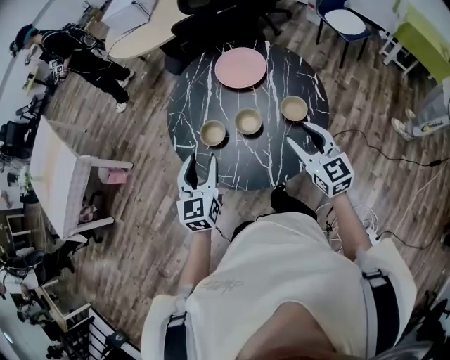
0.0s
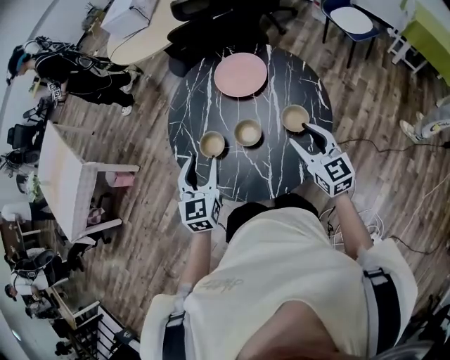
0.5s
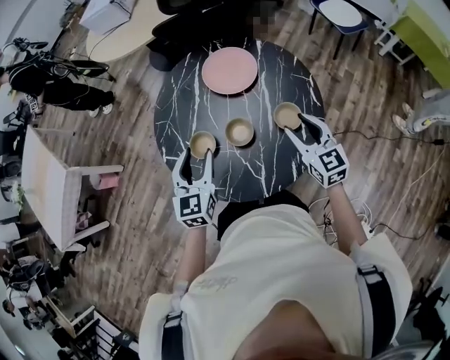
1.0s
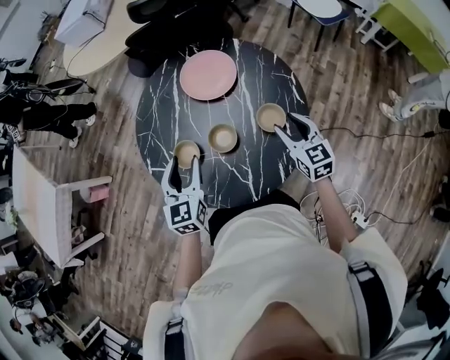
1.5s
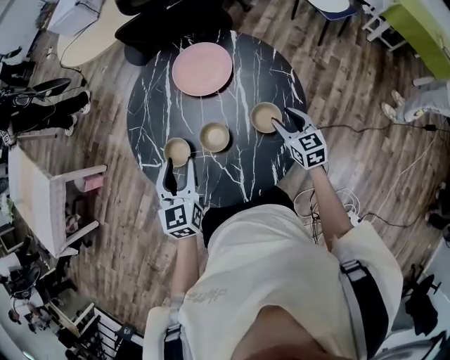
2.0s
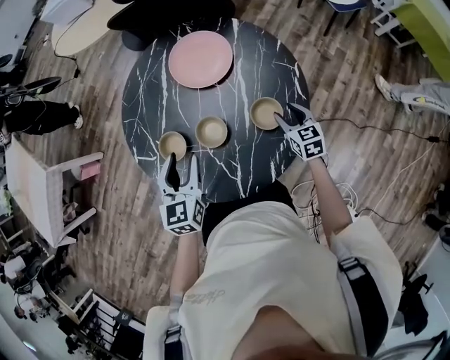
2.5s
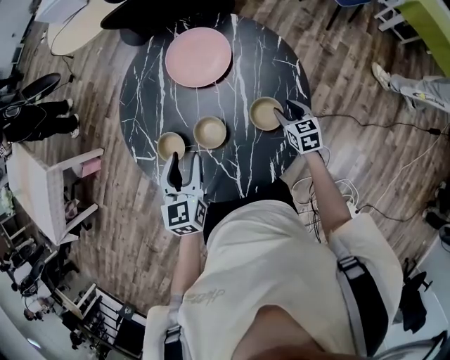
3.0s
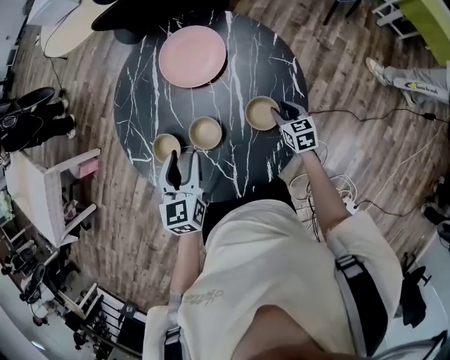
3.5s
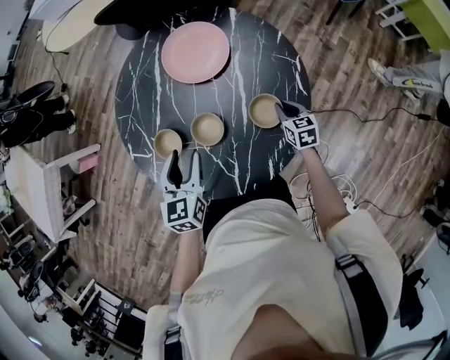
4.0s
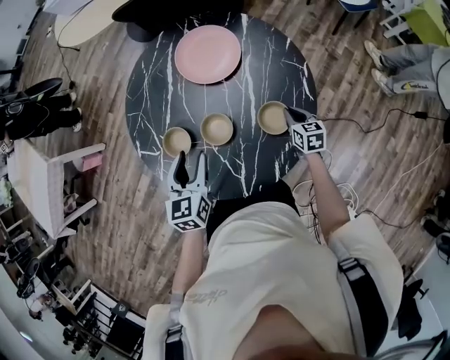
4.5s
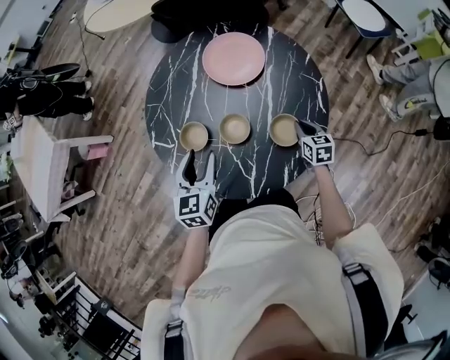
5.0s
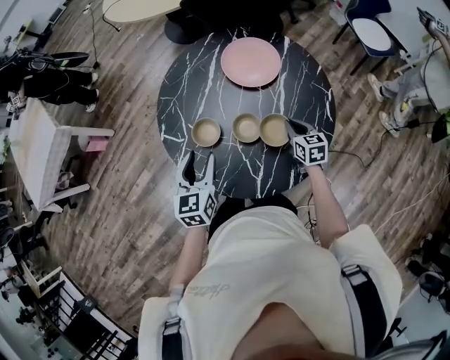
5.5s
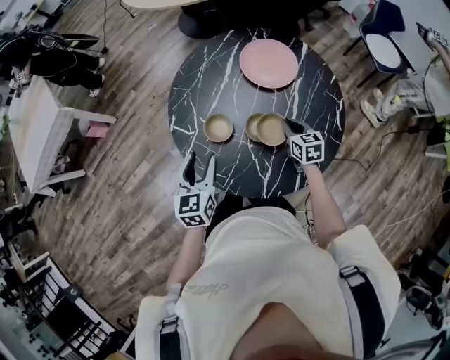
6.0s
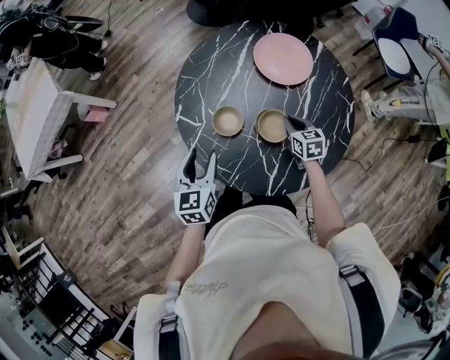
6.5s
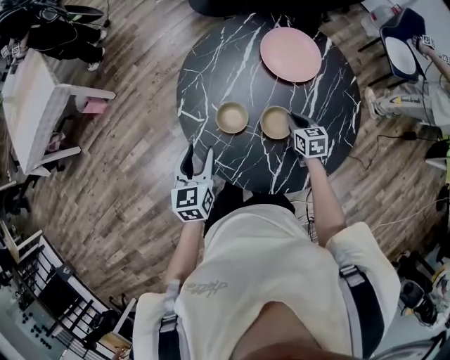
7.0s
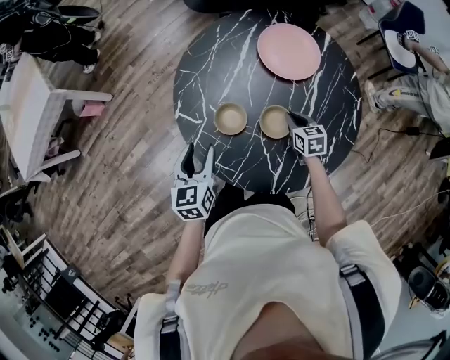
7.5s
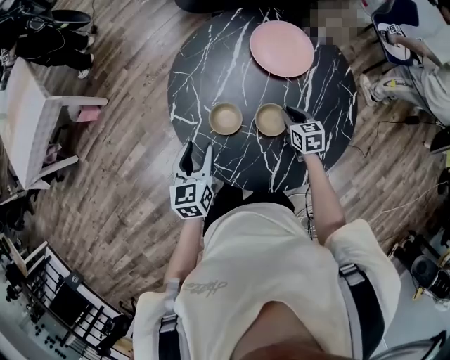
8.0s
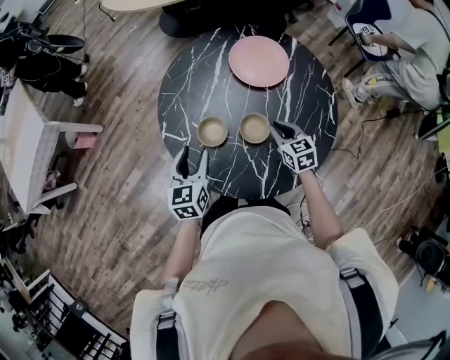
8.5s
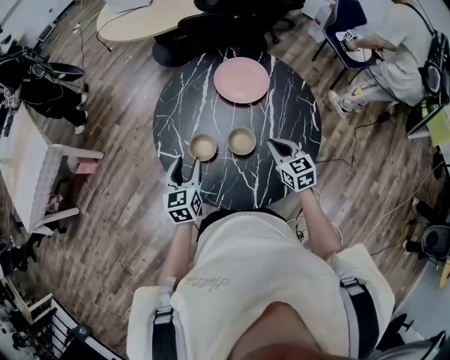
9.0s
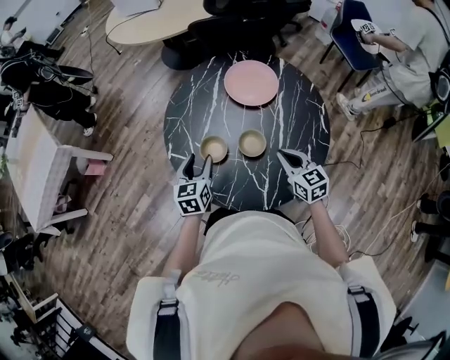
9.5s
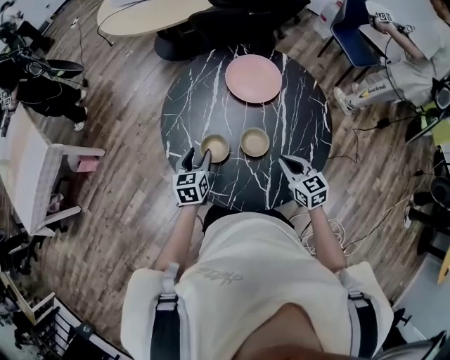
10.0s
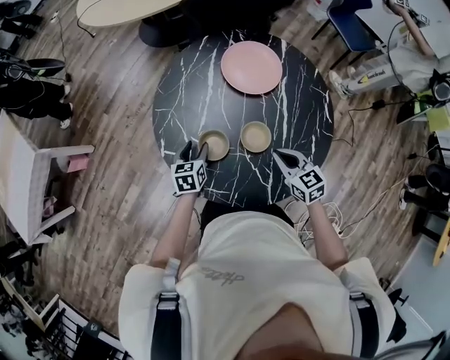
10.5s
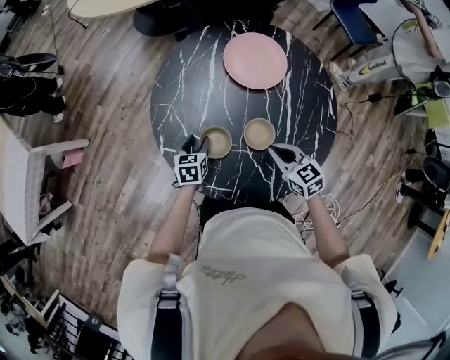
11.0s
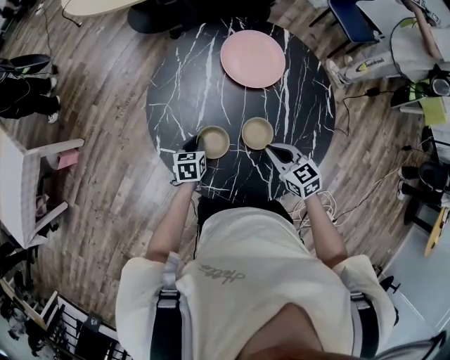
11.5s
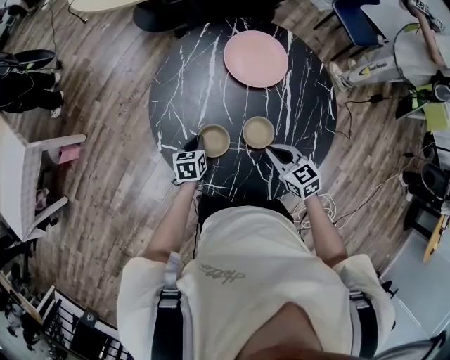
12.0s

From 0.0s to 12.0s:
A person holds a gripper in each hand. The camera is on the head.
From 0.0s to 2.0s: The left gripper travels forward and to the right by some 10 cm, while the right gripper shifts approximately 25 cm downward, forward and to the right.
From 2.0s to 4.0s: The right gripper moves downward, approximately 15 cm, and closes up, while the left gripper moves approximately 5 cm.
From 4.0s to 6.0s: The right gripper is displaced to the left and upward by about 20 cm. The left gripper shifts about 15 cm to the left.
From 6.0s to 8.0s: The left gripper changes place by about 5 cm. Meanwhile the right gripper moves downward, about 5 cm.
From 8.0s to 10.0s: The left gripper shifts approximately 5 cm forward; the right gripper heads upward and backward, covering some 15 cm.
From 10.0s to 12.0s: The left gripper moves downward, about 15 cm, and closes its fingers; the right gripper travels to the left by approximately 5 cm.

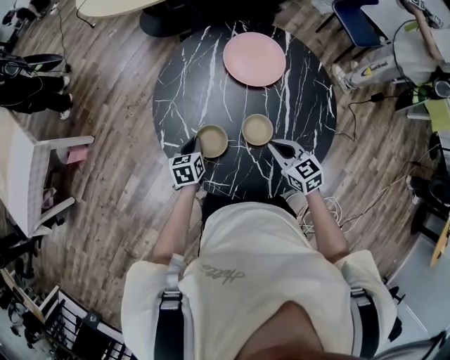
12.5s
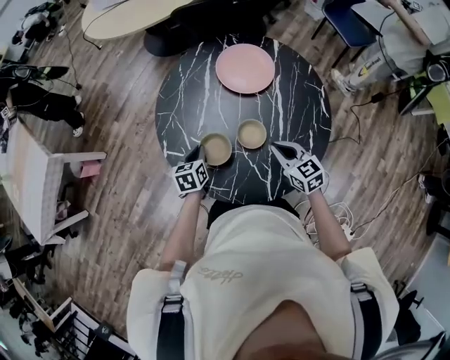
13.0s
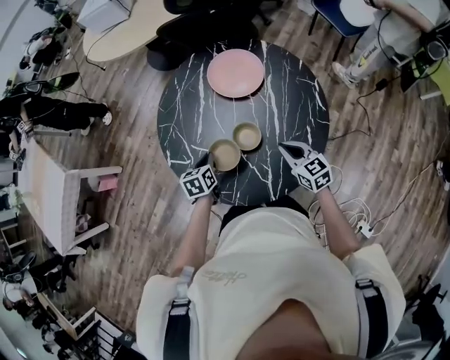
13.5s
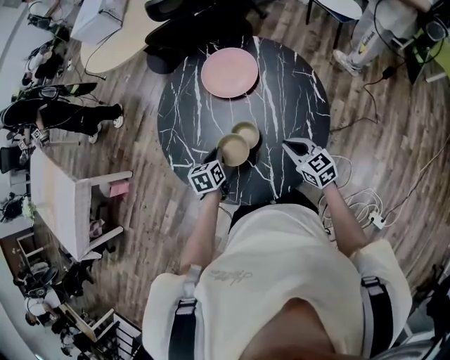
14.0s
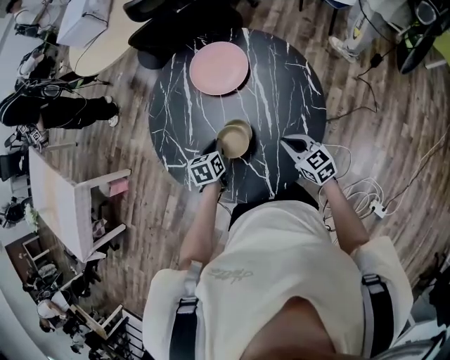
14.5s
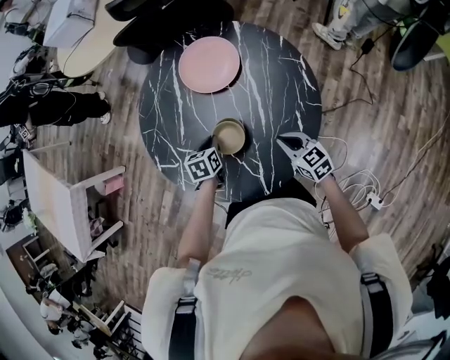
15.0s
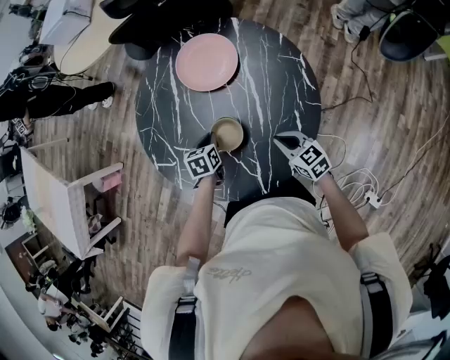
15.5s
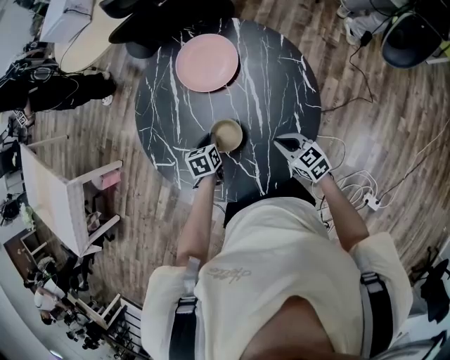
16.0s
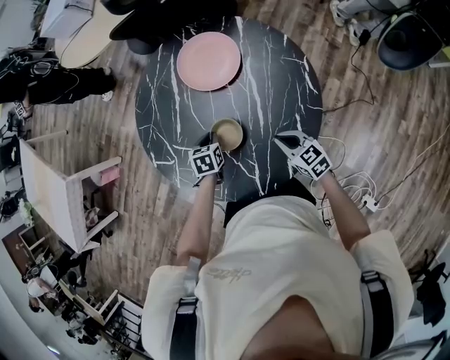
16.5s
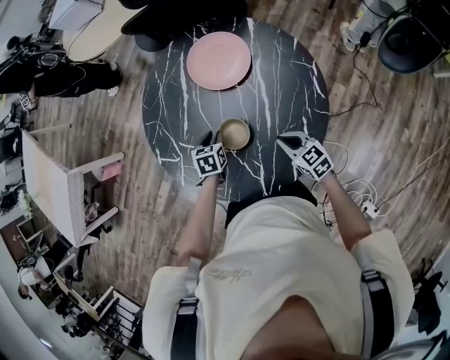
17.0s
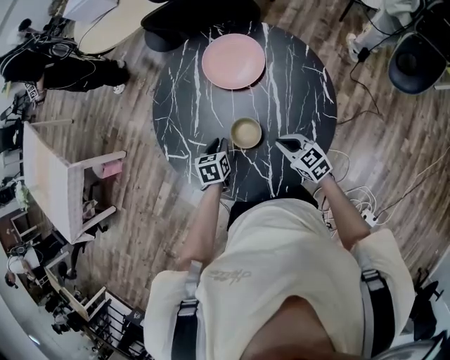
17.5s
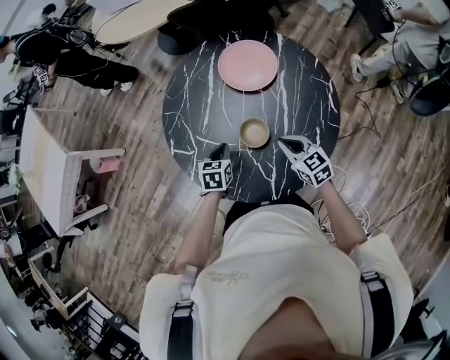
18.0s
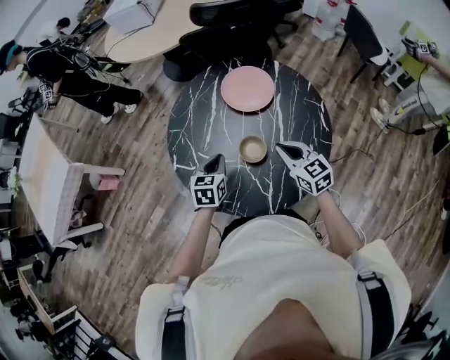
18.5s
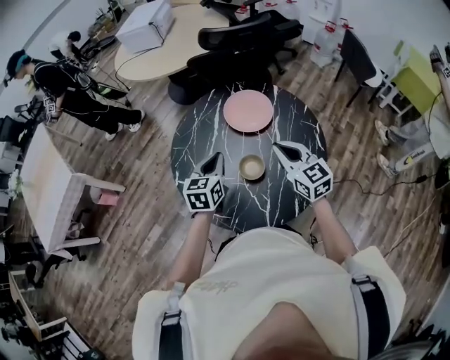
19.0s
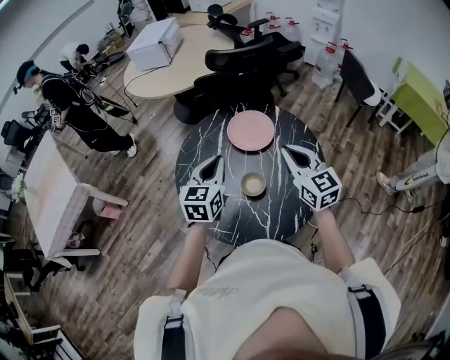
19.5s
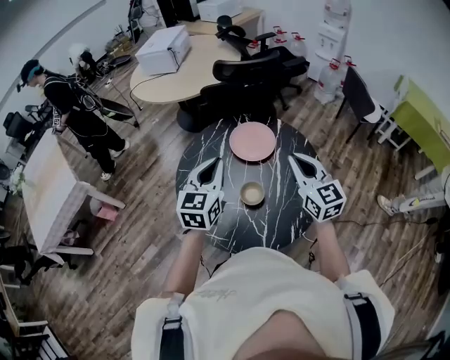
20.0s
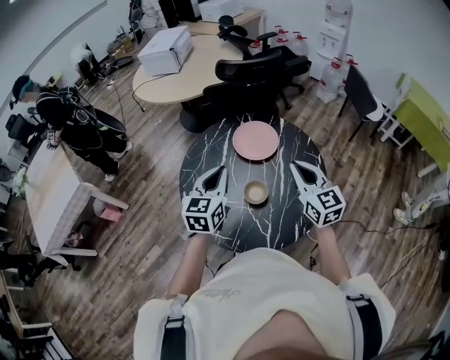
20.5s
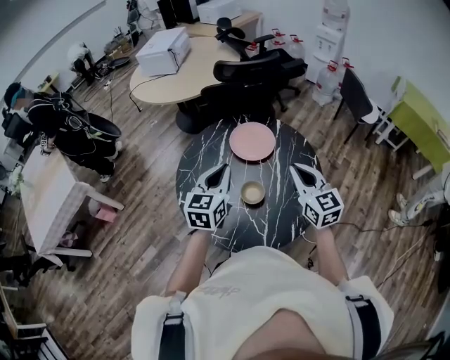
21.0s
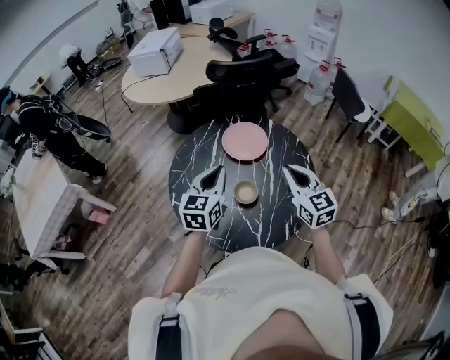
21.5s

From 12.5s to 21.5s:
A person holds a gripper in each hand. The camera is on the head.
From 12.5s to 14.5s: Both grippers move to the right, roughly 15 cm.
From 14.5s to 17.0s: The left gripper opens.
From 17.0s to 19.5s: The two grippers go some 30 cm upward. The right gripper changes its angle by roughly 30 degrees. The left gripper points its fingers some 40 degrees further upward, and closes.
From 19.5s to 21.5s: The grippers make only small movements.

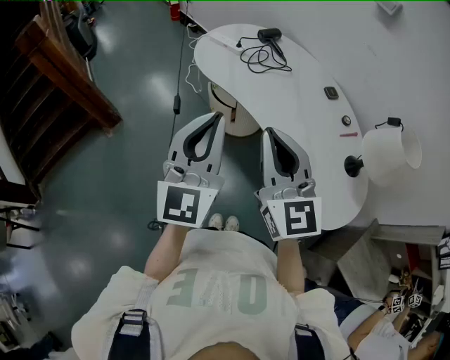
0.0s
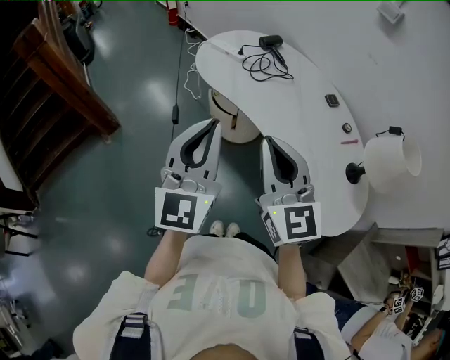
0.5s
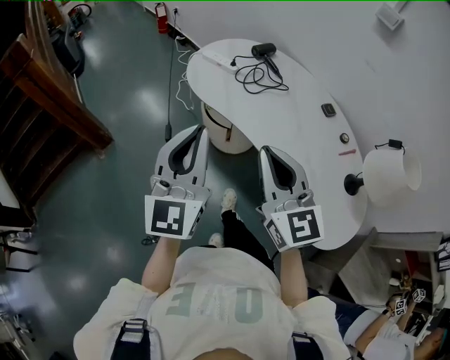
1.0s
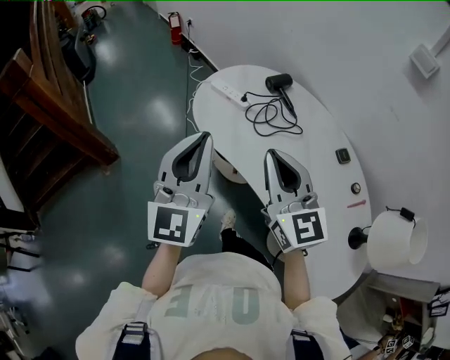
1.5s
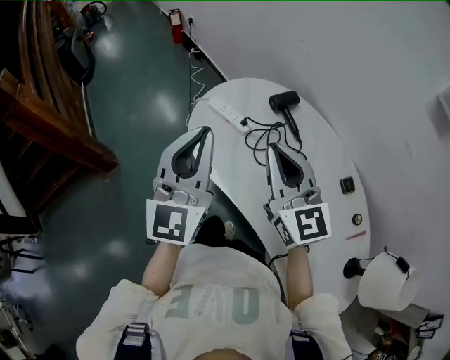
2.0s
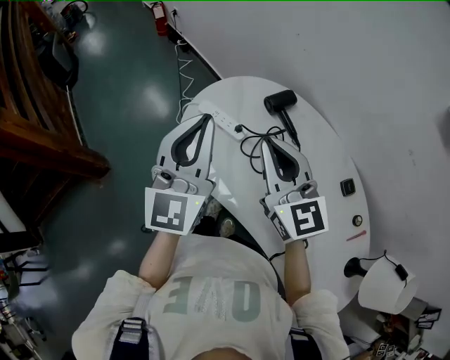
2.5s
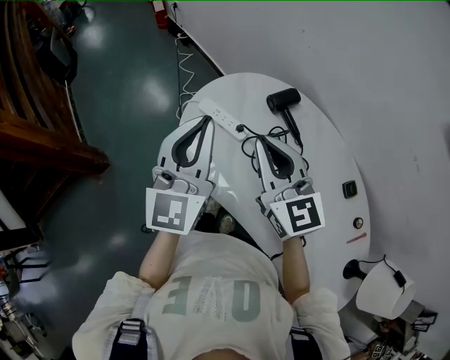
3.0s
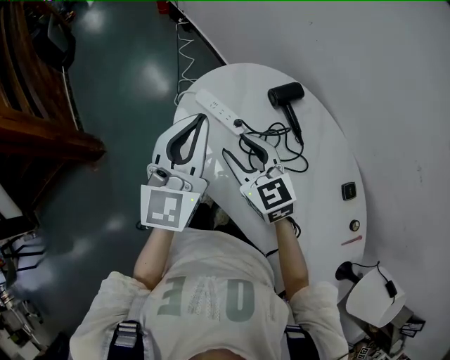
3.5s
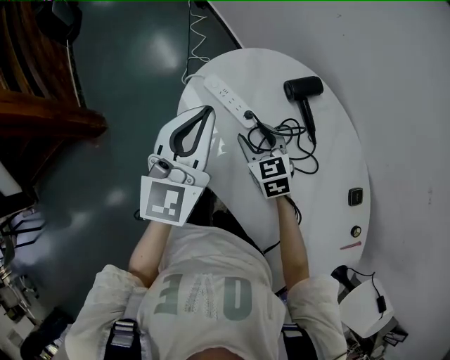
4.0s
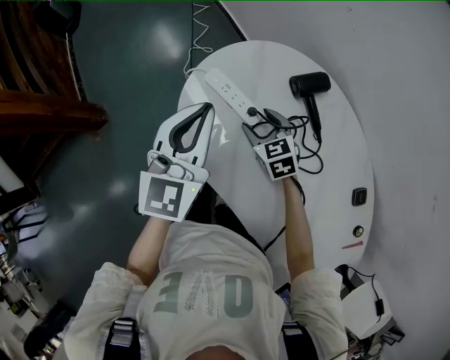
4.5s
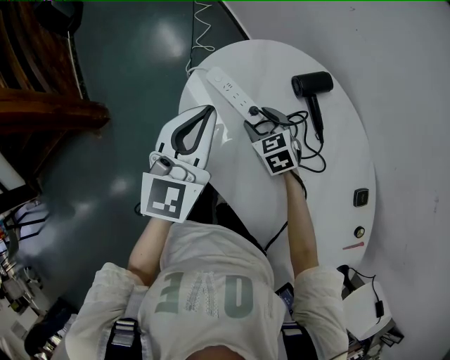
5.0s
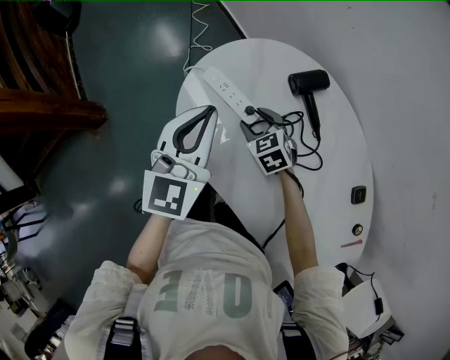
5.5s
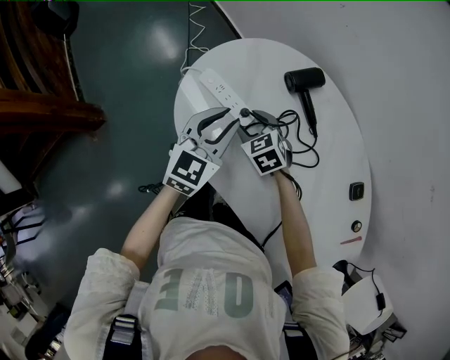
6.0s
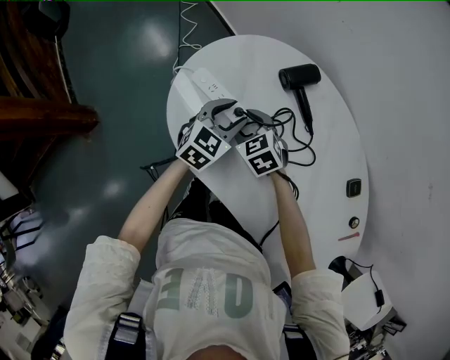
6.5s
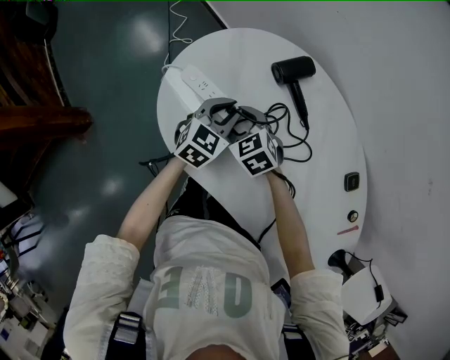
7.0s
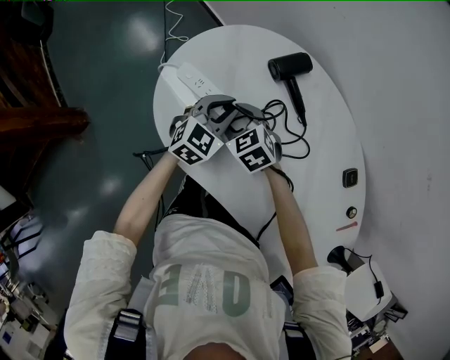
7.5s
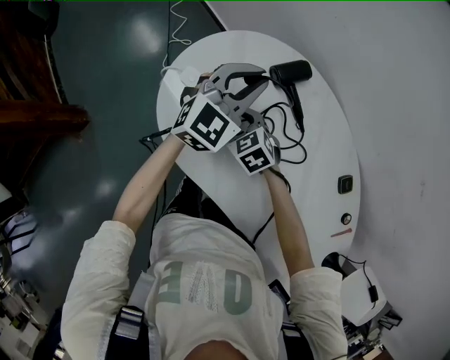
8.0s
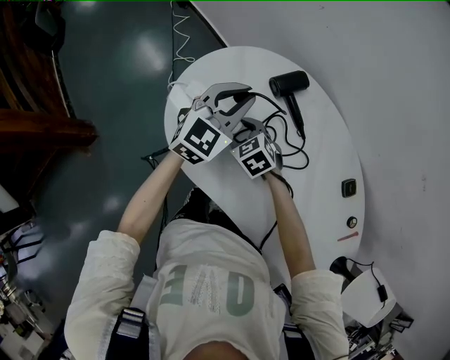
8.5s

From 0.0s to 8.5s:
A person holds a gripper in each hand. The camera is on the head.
From 0.0s to 2.0s: The grippers both shift forward by about 40 cm.
From 2.0s to 4.0s: The right gripper is displaced downward and forward by some 30 cm, tips its fingers downward by approximately 40 degrees, and opens. The left gripper goes some 20 cm forward and downward.
From 4.0s to 6.5s: The right gripper goes some 5 cm downward. The left gripper is displaced downward and to the right by roughly 25 cm, changes its angle by about 40 degrees, and opens.
From 6.5s to 8.5s: The left gripper moves upward, approximately 15 cm, changes its angle by roughly 20 degrees, and closes.
